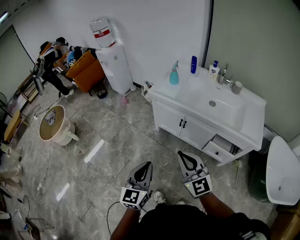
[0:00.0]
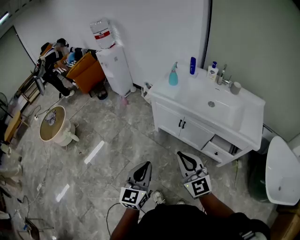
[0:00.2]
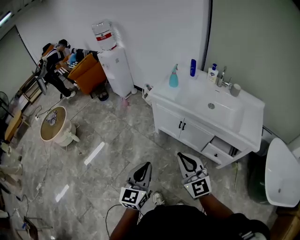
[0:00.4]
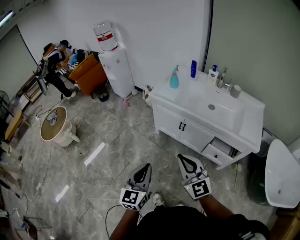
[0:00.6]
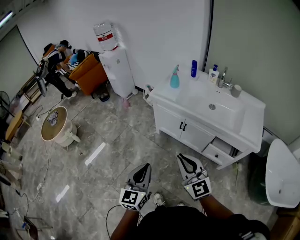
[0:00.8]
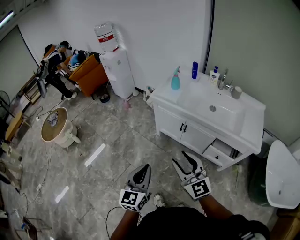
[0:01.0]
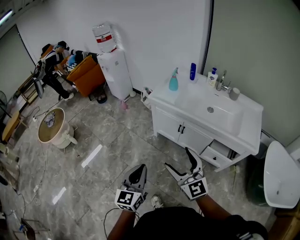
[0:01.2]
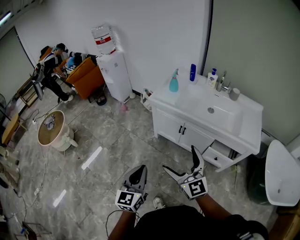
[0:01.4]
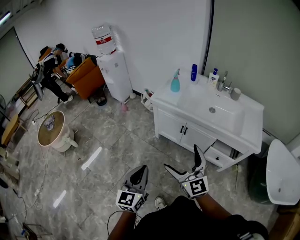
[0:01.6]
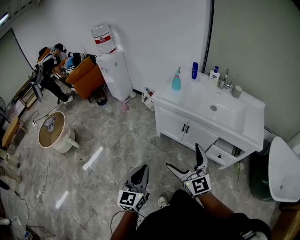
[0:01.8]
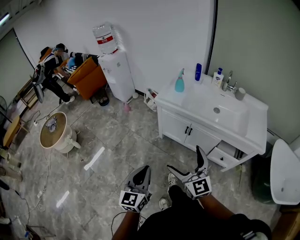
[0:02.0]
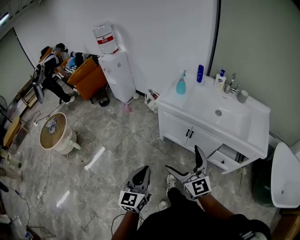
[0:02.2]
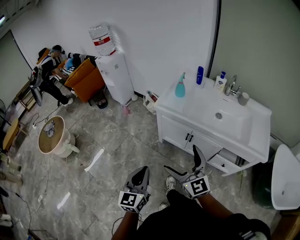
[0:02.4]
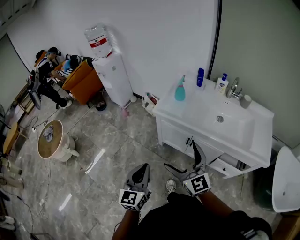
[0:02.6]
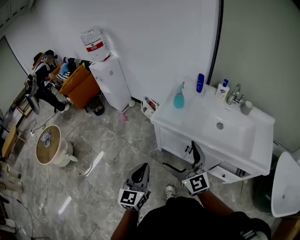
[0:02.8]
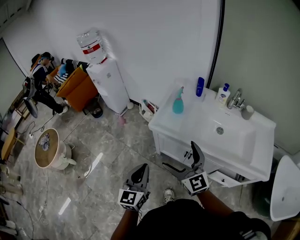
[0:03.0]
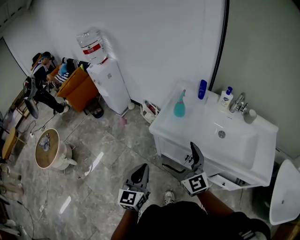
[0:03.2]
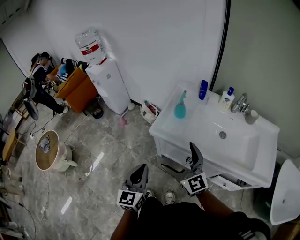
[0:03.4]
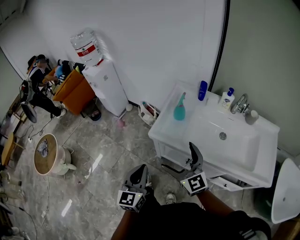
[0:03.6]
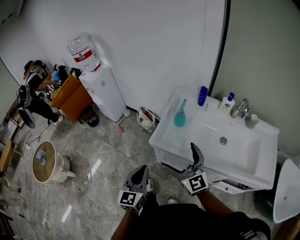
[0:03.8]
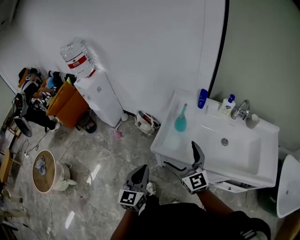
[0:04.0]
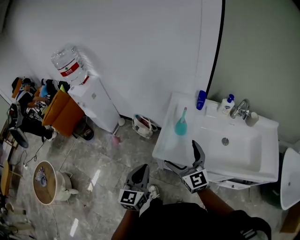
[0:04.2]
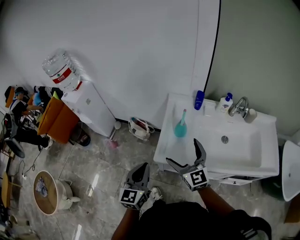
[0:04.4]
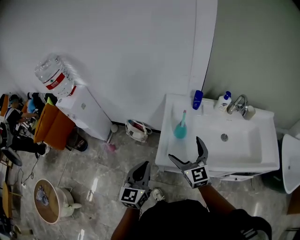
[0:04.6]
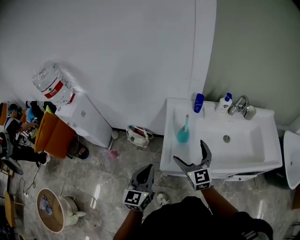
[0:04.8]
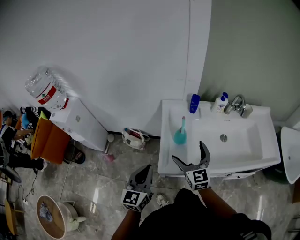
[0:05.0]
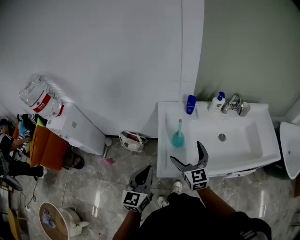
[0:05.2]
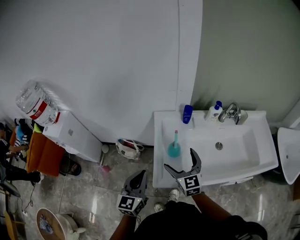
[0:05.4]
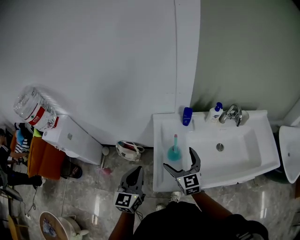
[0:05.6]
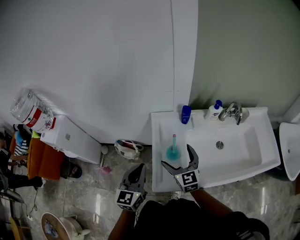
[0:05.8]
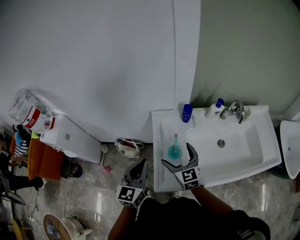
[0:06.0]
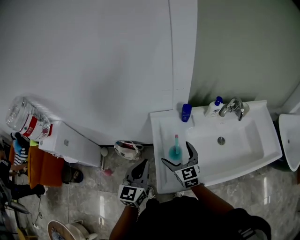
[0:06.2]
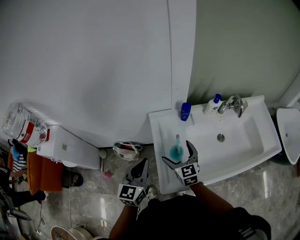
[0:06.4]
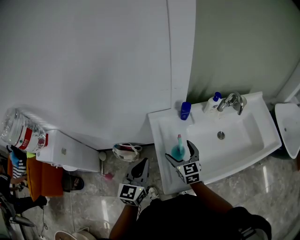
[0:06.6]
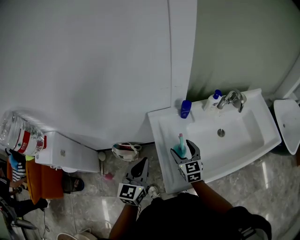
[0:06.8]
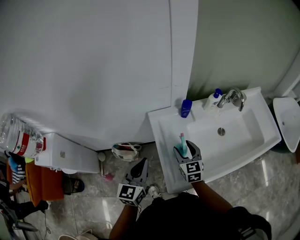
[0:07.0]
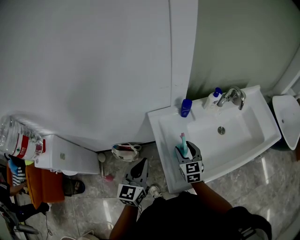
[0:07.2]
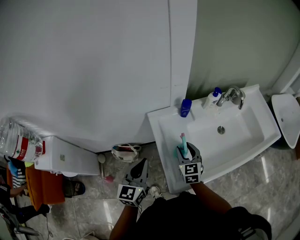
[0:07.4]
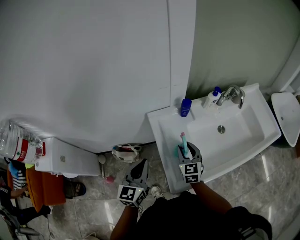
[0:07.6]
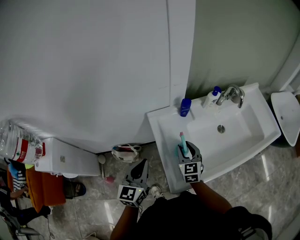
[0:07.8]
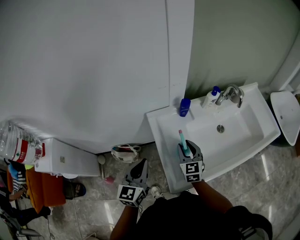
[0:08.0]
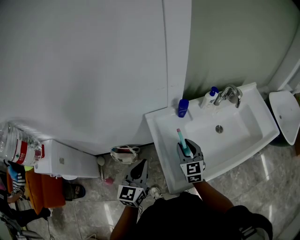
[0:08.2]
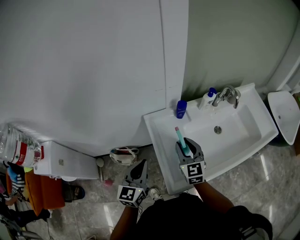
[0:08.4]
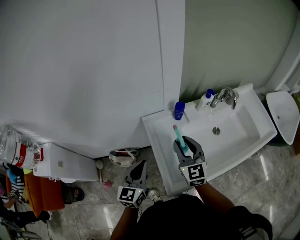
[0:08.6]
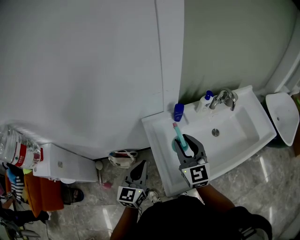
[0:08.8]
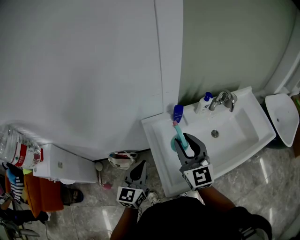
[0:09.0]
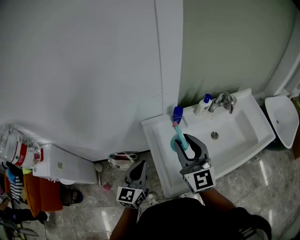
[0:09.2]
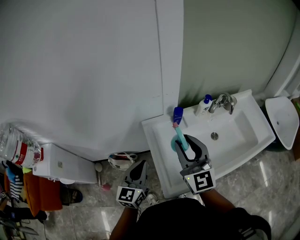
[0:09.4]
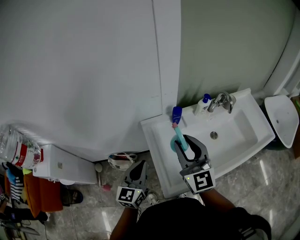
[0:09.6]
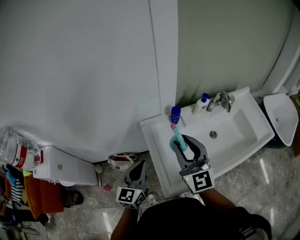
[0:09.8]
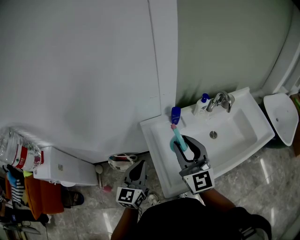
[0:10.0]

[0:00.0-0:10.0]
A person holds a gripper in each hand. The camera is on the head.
0.0 to 1.4 s: The right gripper opens its fingers.
1.4 to 2.8 s: The two grippers go about 25 cm forward.
2.8 to 4.2 s: Both grippers move forward, roughly 25 cm.
4.2 to 5.8 s: Both grippers move forward, roughly 20 cm. The left gripper changes its angle by some 20 degrees. The right gripper changes its angle by roughly 30 degrees.
5.8 to 7.2 s: The right gripper travels downward and forward by approximately 10 cm, rotates about 20 degrees, and closes up. Meanwhile the left gripper shifts about 10 cm forward and to the left.
7.2 to 8.6 s: The right gripper is displaced upward by about 10 cm.
8.6 to 10.0 s: The right gripper heads upward, covering some 10 cm.

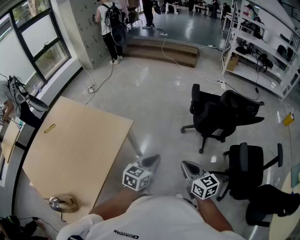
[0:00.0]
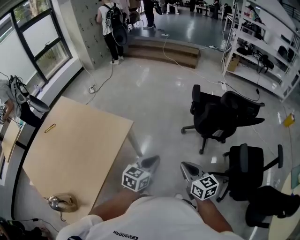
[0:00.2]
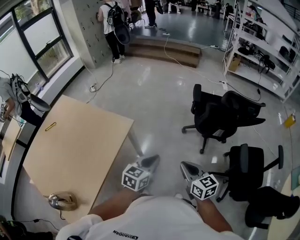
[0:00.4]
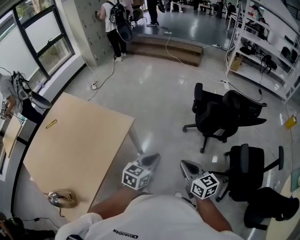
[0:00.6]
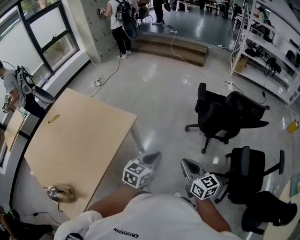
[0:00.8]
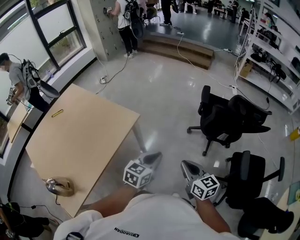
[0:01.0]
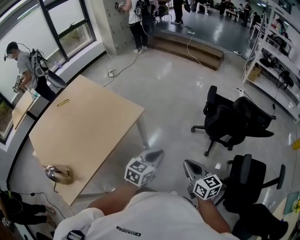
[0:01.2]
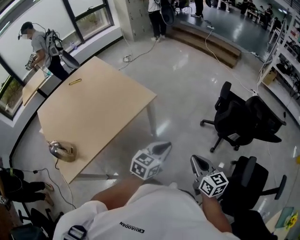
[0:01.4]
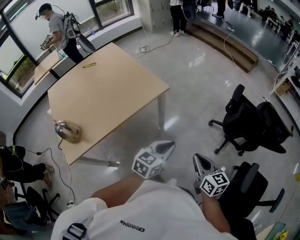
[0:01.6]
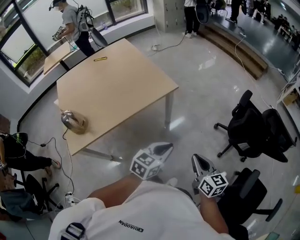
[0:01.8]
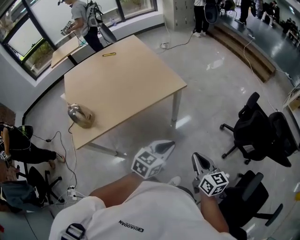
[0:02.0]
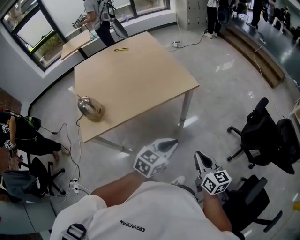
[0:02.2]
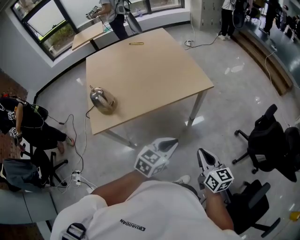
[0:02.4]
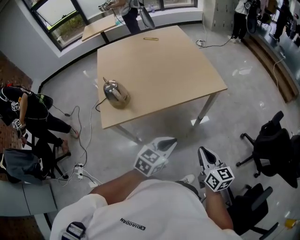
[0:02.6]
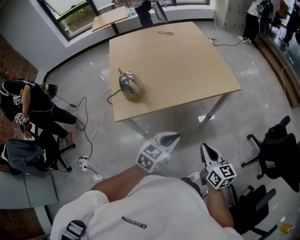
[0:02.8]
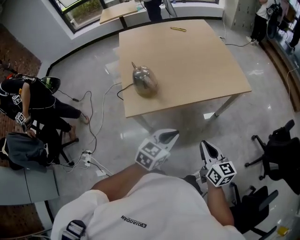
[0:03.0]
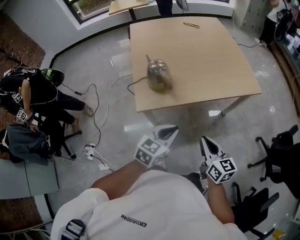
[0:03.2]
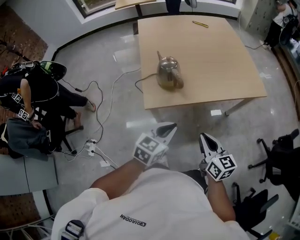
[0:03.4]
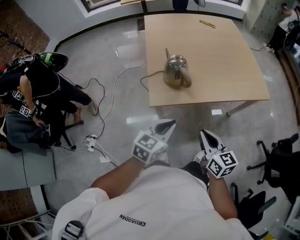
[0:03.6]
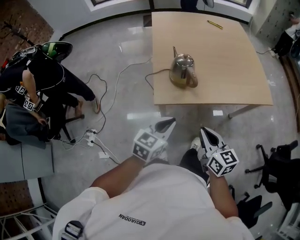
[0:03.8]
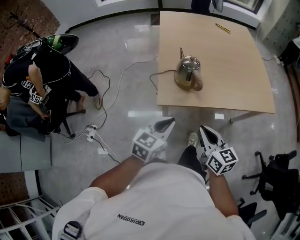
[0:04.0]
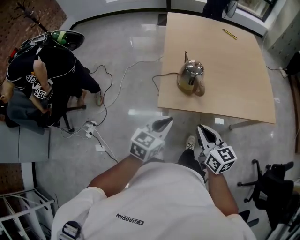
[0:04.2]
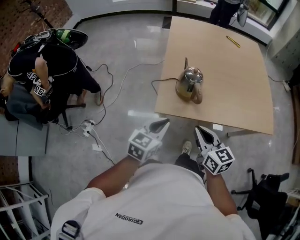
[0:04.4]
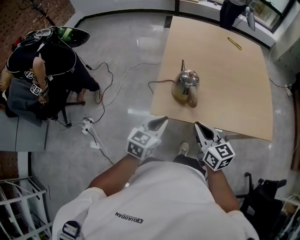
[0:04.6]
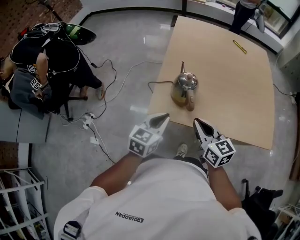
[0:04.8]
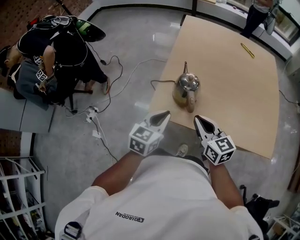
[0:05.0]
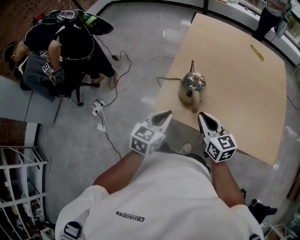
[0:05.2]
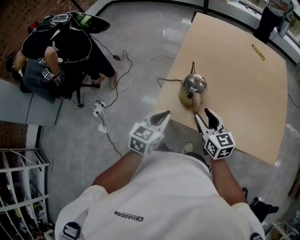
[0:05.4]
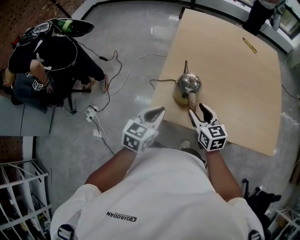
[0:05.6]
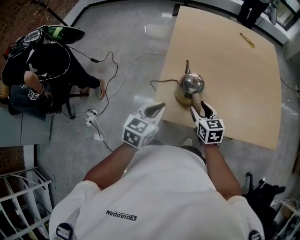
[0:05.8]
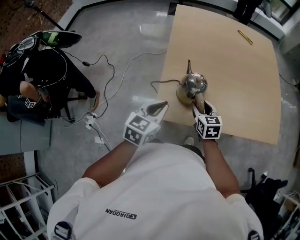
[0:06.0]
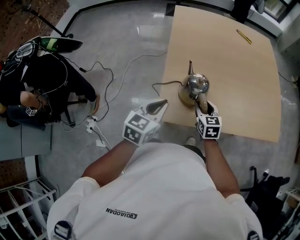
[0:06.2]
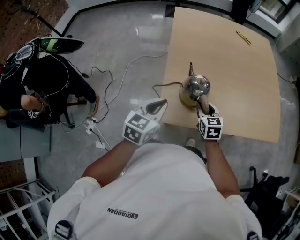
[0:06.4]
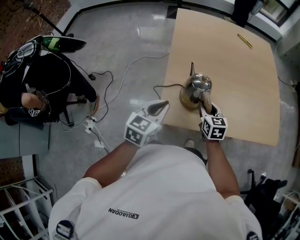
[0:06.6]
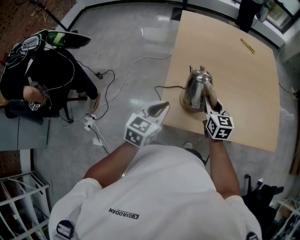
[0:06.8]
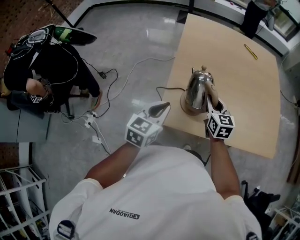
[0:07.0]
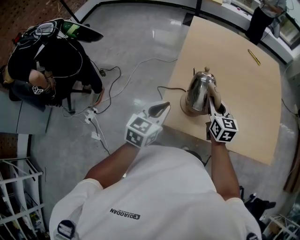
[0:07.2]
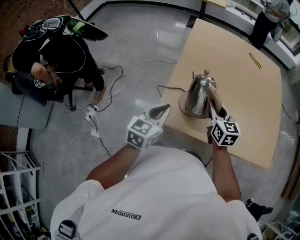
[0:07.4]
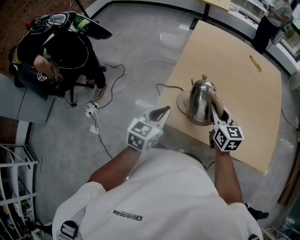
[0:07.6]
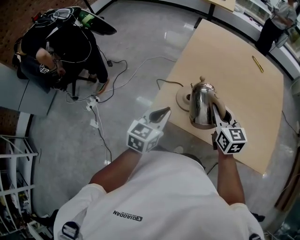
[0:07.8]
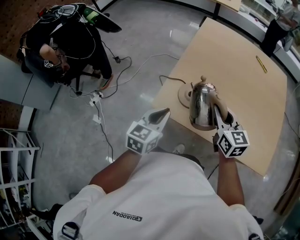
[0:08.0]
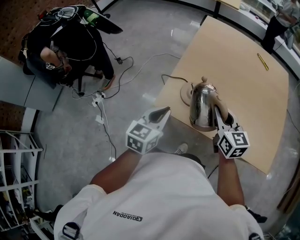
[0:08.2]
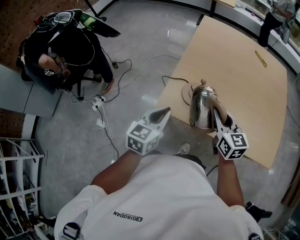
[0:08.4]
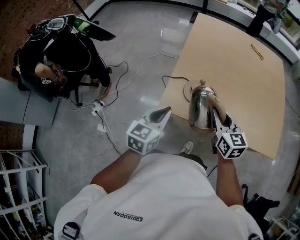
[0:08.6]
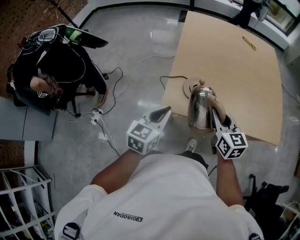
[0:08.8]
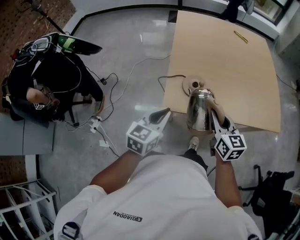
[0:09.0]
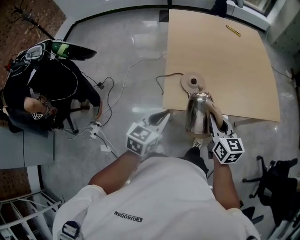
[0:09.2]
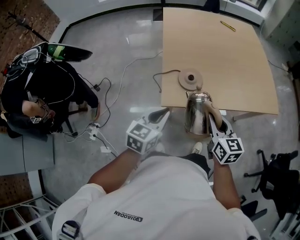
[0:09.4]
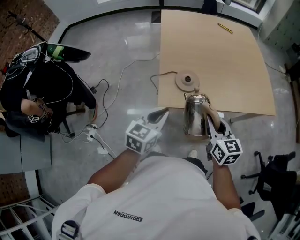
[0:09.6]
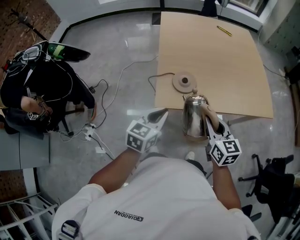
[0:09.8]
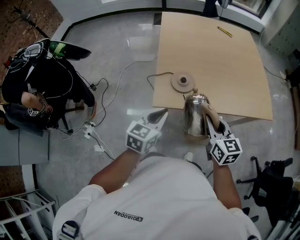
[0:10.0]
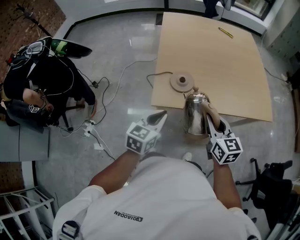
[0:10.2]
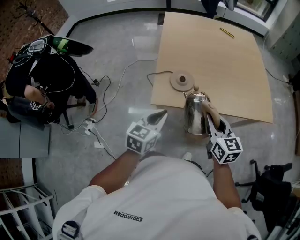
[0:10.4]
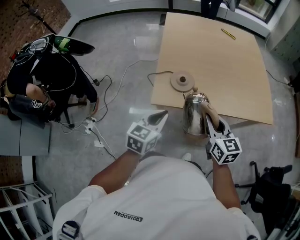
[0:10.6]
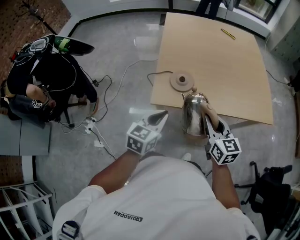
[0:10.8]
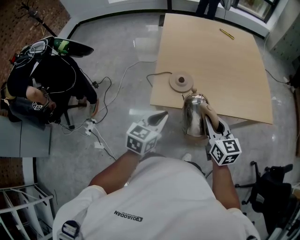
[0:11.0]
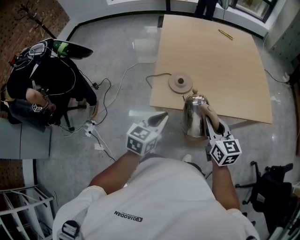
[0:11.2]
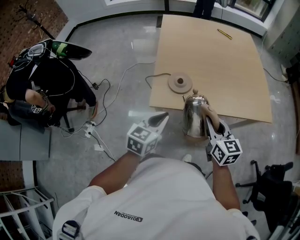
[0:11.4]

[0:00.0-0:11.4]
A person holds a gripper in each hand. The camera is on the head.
0.0 to 1.4 s: The right gripper shifts by roughly 5 cm. The left gripper goes roughly 5 cm backward.
1.4 to 2.8 s: The right gripper changes place by some 30 cm, and rotates about 30 degrees; the left gripper shifts by about 35 cm, and rotates some 30 degrees.
2.8 to 4.2 s: The left gripper shifts by roughly 30 cm, and rotates approximately 30 degrees, while the right gripper changes place by some 30 cm, and changes its angle by about 30 degrees.
4.2 to 5.6 s: The left gripper heads forward, covering roughly 10 cm; the right gripper shifts approximately 20 cm forward, and opens its fingers.
5.6 to 7.2 s: The right gripper goes approximately 10 cm forward, goes downward and returns, some 5 cm each way, and closes up, while the left gripper changes place by about 5 cm.
7.2 to 8.6 s: The grippers both shift backward by approximately 10 cm.
8.6 to 10.0 s: The right gripper heads backward, covering some 15 cm. The left gripper heads backward, covering approximately 5 cm.
10.0 to 11.4 s: There are only small adjustments of the grippers.

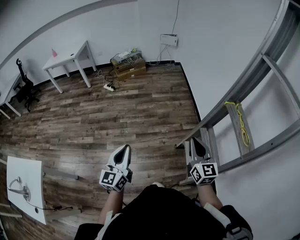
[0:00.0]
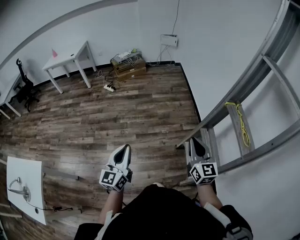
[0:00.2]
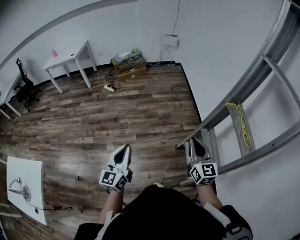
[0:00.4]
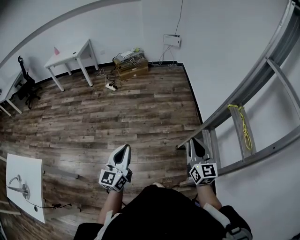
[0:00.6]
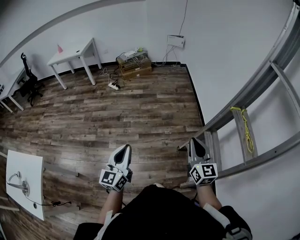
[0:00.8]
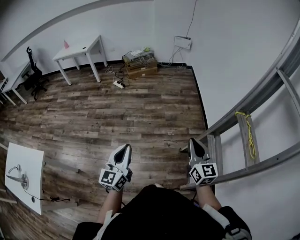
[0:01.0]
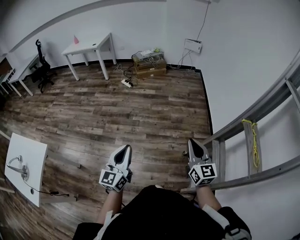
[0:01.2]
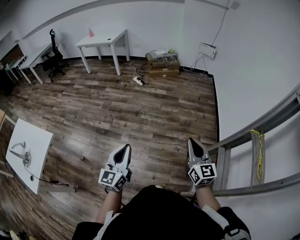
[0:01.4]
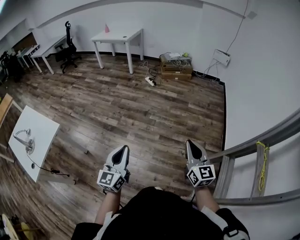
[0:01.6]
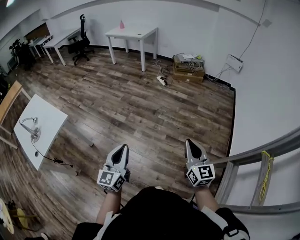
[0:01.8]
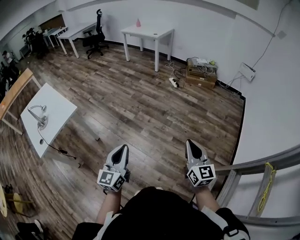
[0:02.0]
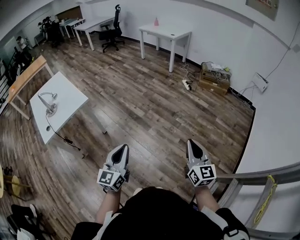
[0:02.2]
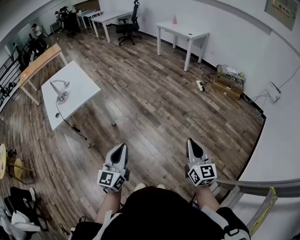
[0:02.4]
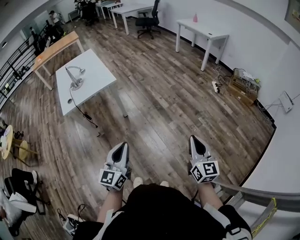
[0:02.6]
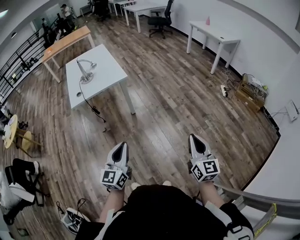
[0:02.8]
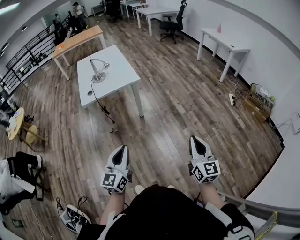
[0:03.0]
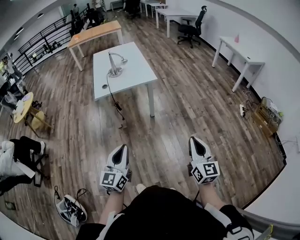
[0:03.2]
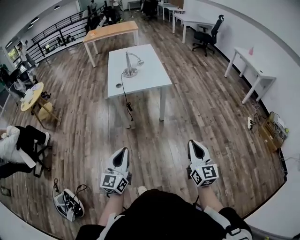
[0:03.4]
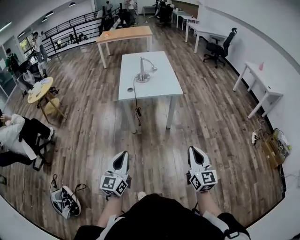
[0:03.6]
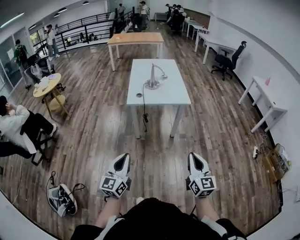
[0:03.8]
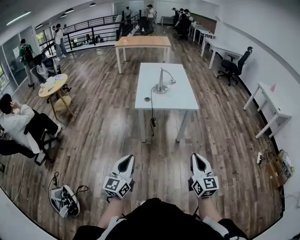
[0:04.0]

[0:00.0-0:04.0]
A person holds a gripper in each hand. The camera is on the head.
0.0 to 1.4 s: The right gripper moves to the left and forward, about 15 cm; the left gripper travels to the left by roughly 10 cm.
1.4 to 2.6 s: The right gripper shifts by roughly 25 cm, and rotates about 40 degrees. Meanwhile the left gripper shifts by about 25 cm, and swivels roughly 50 degrees.
2.6 to 4.0 s: The right gripper shifts by roughly 35 cm, and changes its angle by approximately 30 degrees; the left gripper changes place by about 35 cm, and swivels about 30 degrees.
